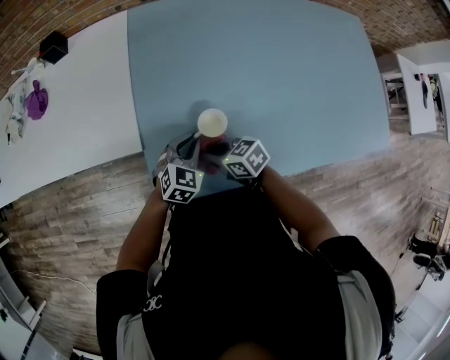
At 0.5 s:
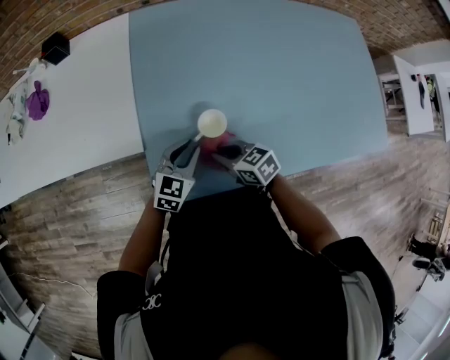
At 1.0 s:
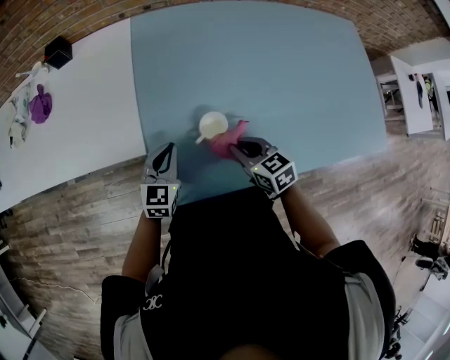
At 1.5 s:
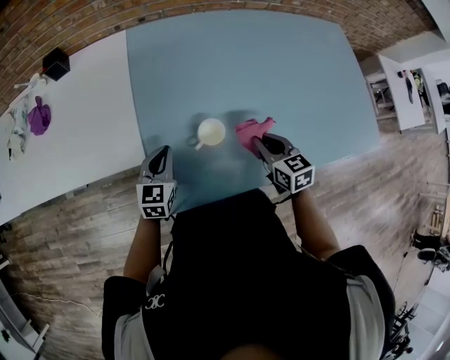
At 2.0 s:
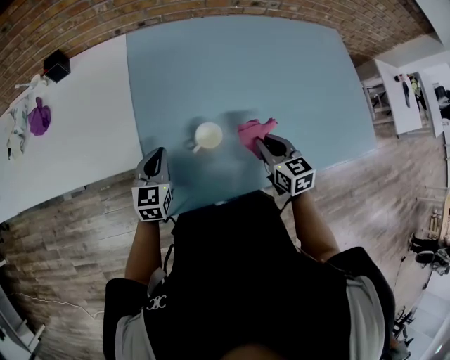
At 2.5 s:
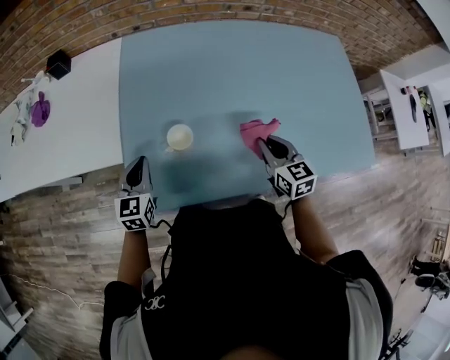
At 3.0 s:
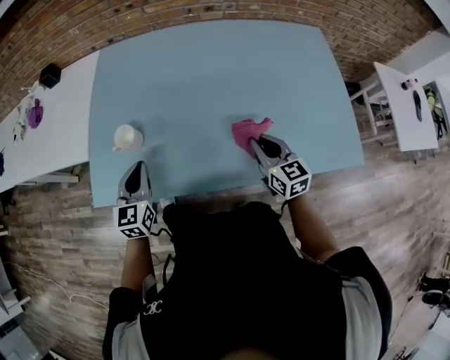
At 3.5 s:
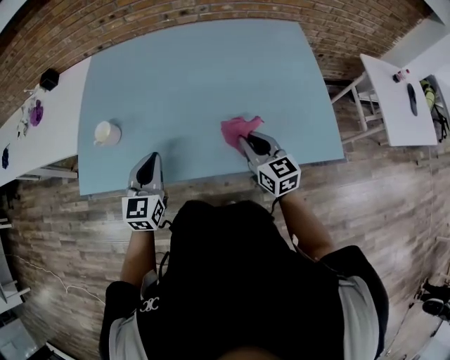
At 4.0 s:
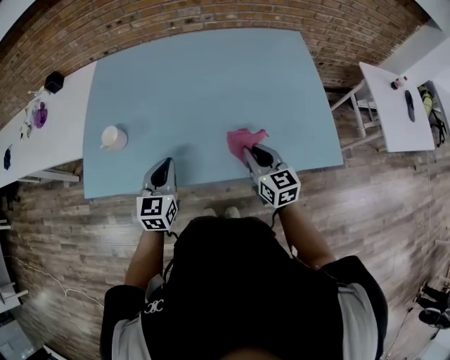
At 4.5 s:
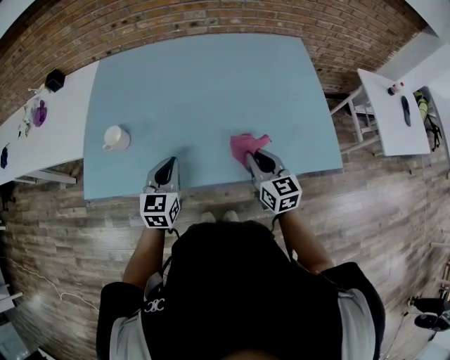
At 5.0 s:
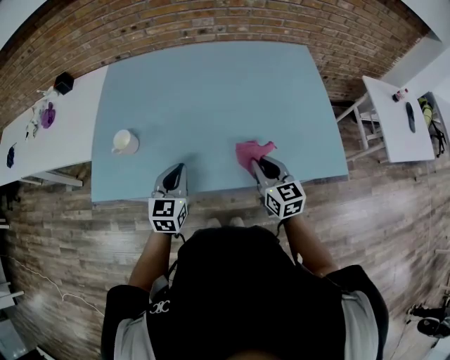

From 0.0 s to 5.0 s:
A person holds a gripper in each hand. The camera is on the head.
From 0.0 s to 2.5 s: The right gripper goes roughly 25 cm to the right, and turns by some 40 degrees. Meanwhile the left gripper heads upward and to the left, covering about 10 cm, and changes its angle by about 30 degrees.
From 2.5 s to 5.0 s: The right gripper goes some 25 cm to the right and backward, while the left gripper moves to the right, some 35 cm.

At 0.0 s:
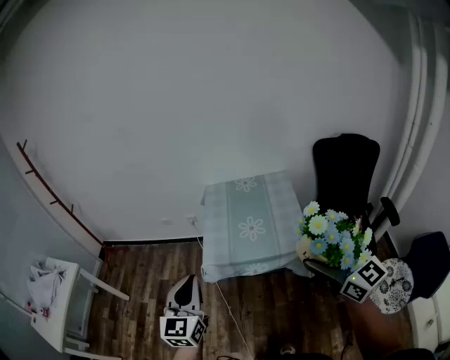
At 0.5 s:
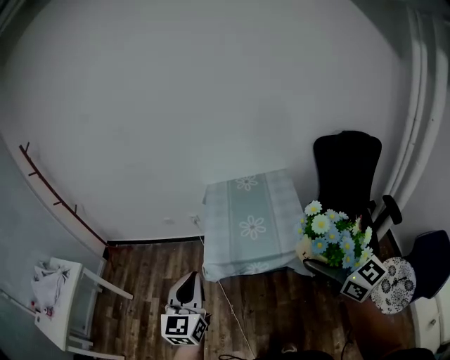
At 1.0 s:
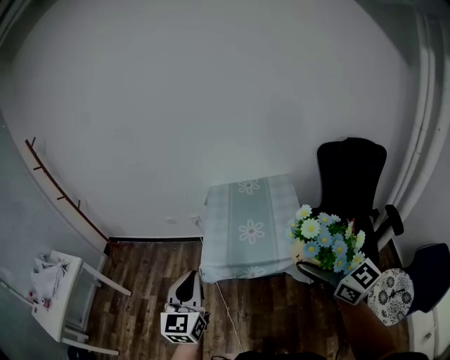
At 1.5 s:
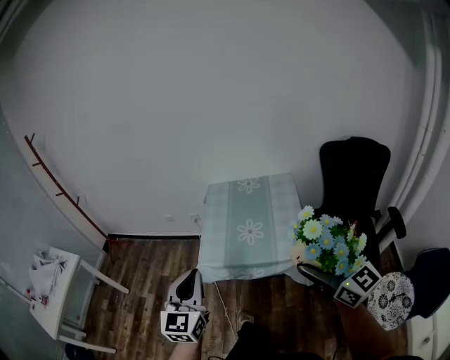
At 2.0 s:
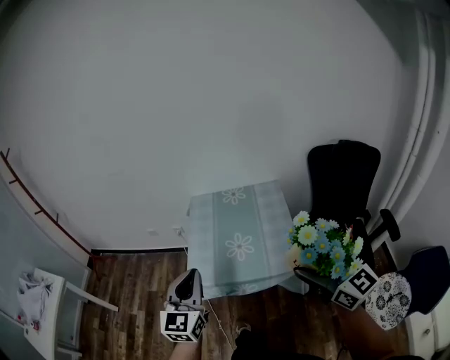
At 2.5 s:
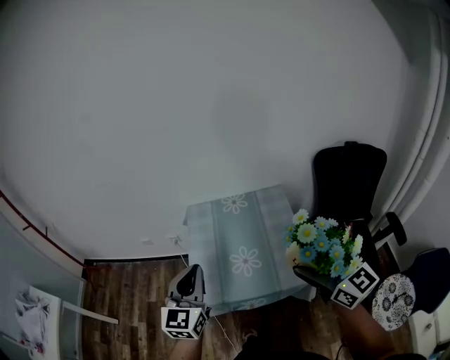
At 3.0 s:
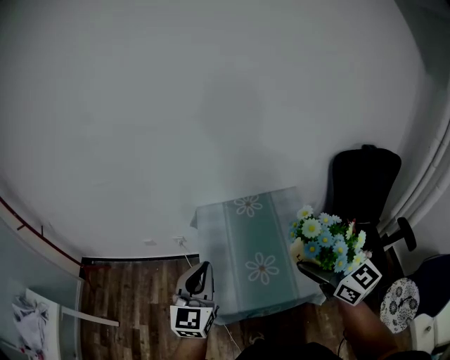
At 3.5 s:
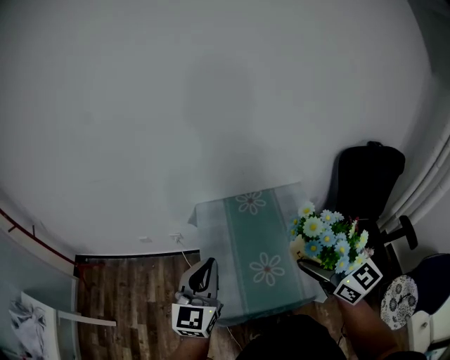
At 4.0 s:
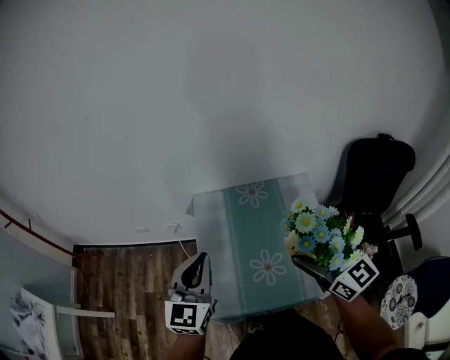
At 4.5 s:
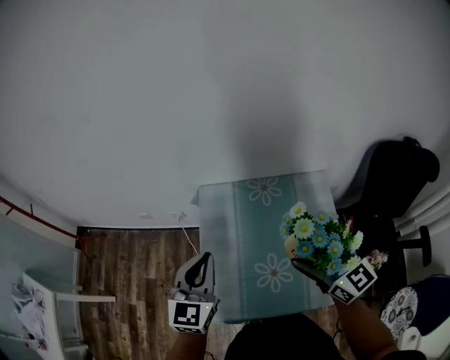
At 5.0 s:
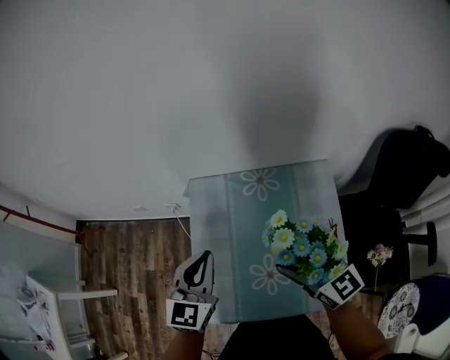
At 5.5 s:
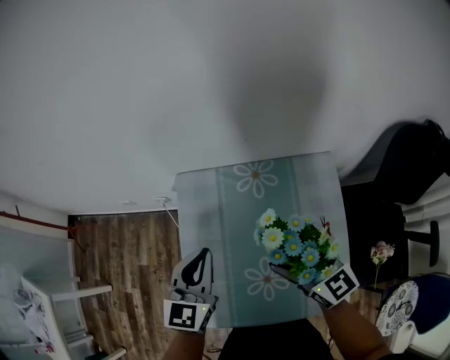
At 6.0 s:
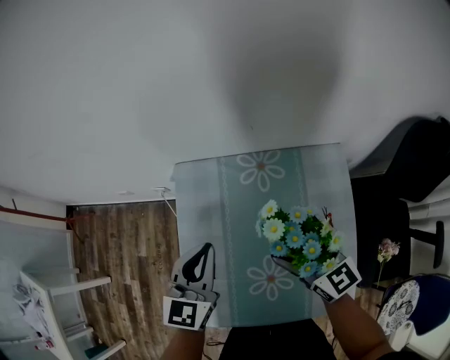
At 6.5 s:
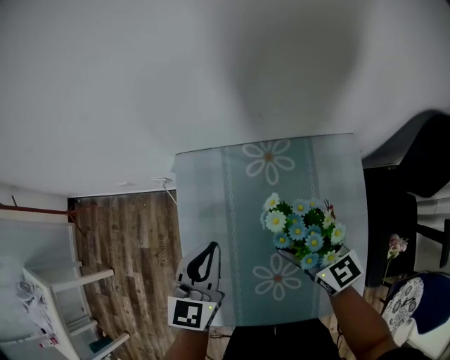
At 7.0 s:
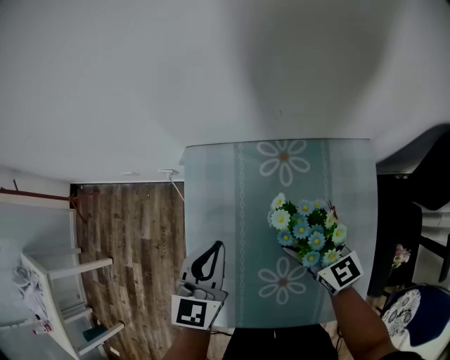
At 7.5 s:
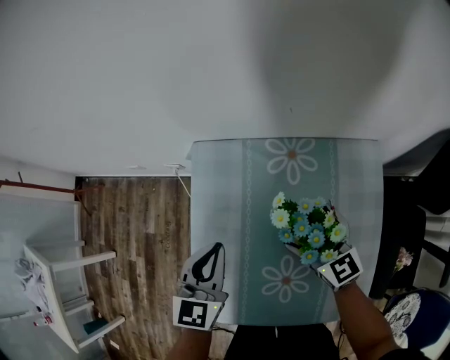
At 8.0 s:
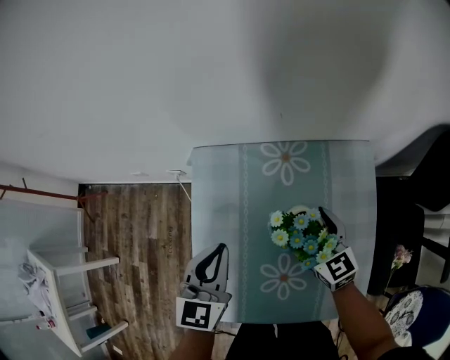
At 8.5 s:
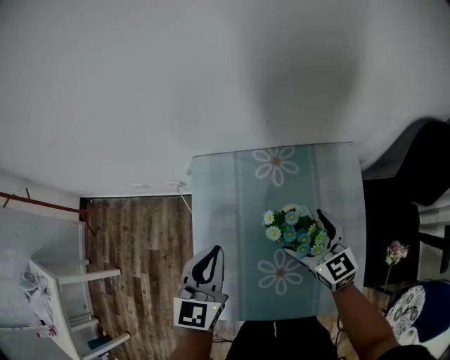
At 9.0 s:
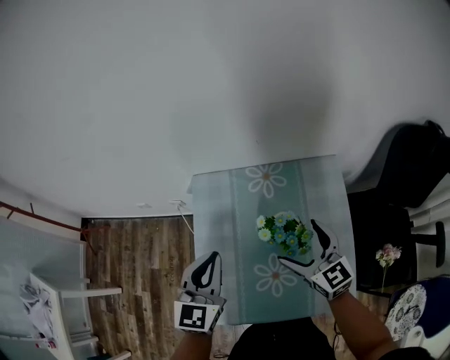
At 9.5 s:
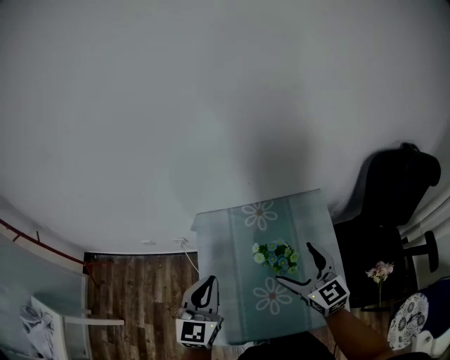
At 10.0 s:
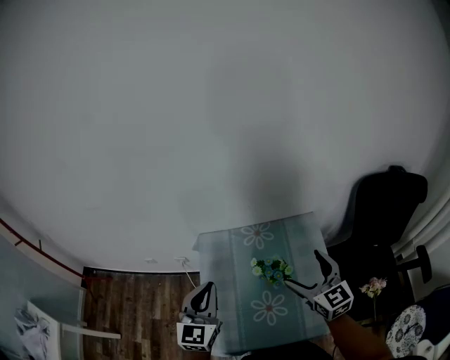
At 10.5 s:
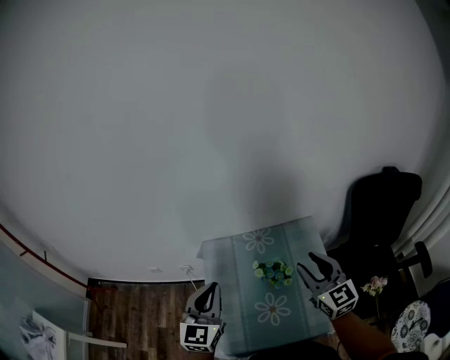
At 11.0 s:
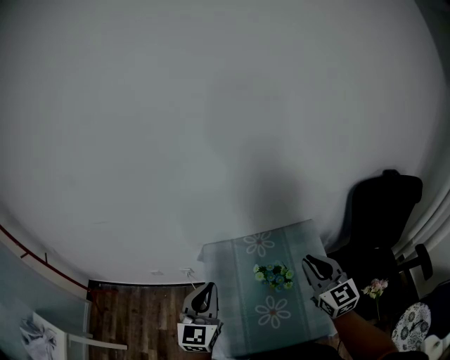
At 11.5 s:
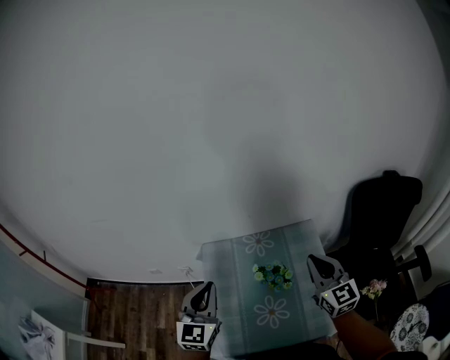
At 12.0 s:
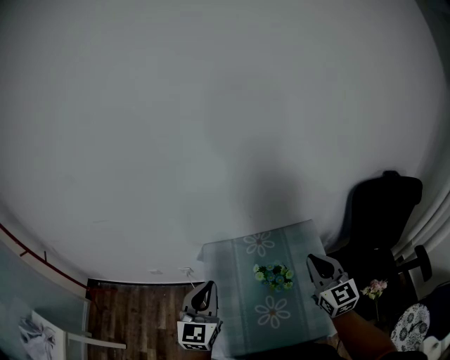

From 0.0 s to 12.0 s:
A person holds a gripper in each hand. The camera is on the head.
From 0.0 s to 2.0 s: Both grippers travel together forward and to the right, roughly 15 cm.
From 2.0 s to 4.0 s: The grippers both shift forward by some 30 cm.
From 4.0 s to 6.0 s: The right gripper travels downward and forward by approximately 25 cm, while the left gripper is displaced downward, forward and to the right by about 20 cm.
From 6.0 s to 8.0 s: The right gripper heads downward, covering some 10 cm.
From 8.0 s to 10.0 s: The grippers both shift upward by roughly 20 cm. The right gripper changes its angle by roughly 20 degrees.
From 10.0 s to 12.0 s: The right gripper shifts some 5 cm upward, and closes up.

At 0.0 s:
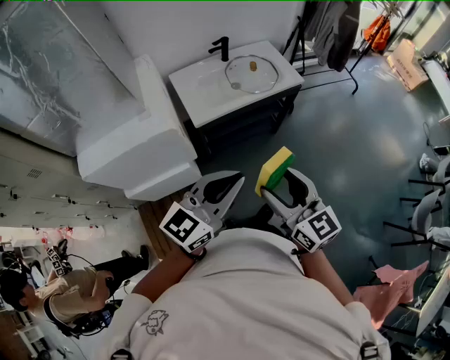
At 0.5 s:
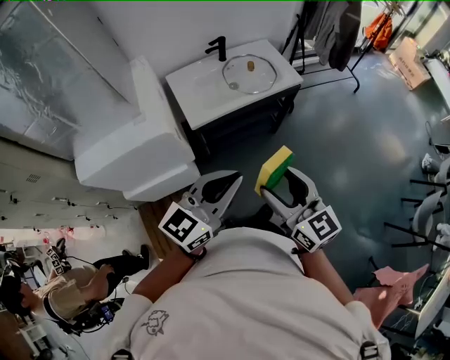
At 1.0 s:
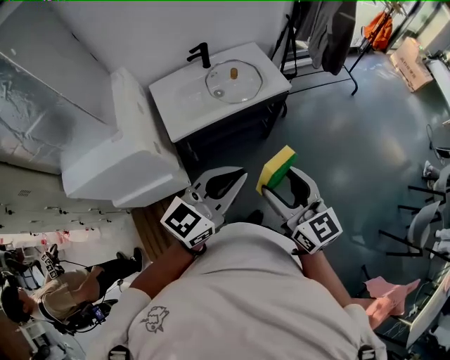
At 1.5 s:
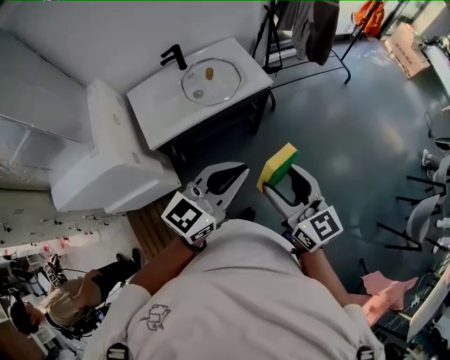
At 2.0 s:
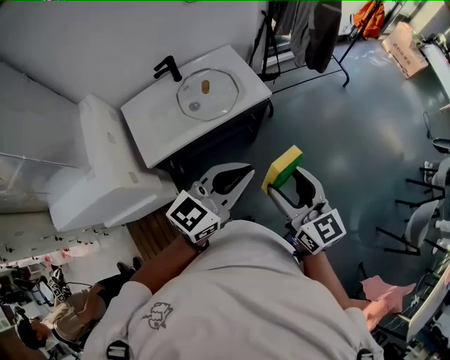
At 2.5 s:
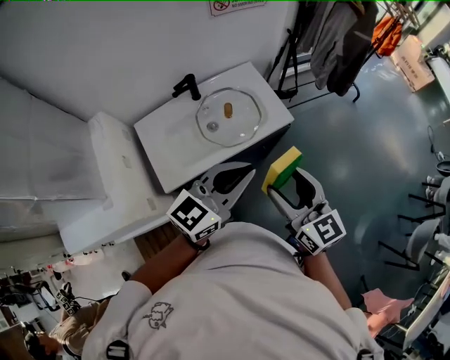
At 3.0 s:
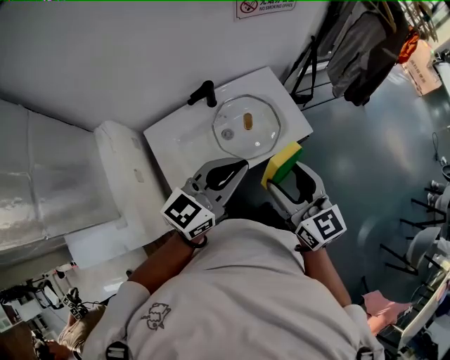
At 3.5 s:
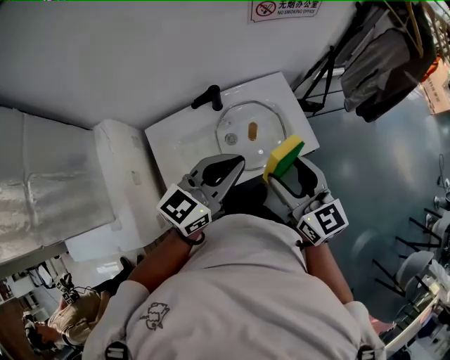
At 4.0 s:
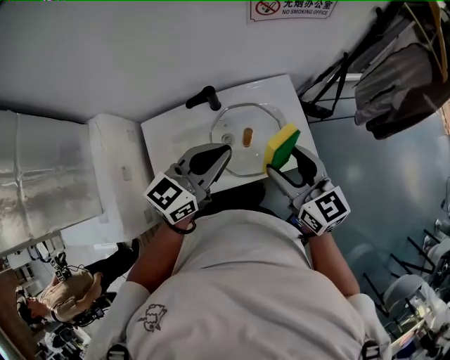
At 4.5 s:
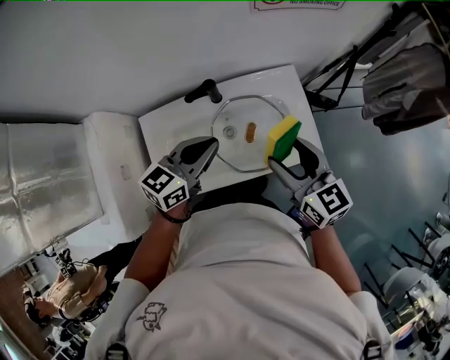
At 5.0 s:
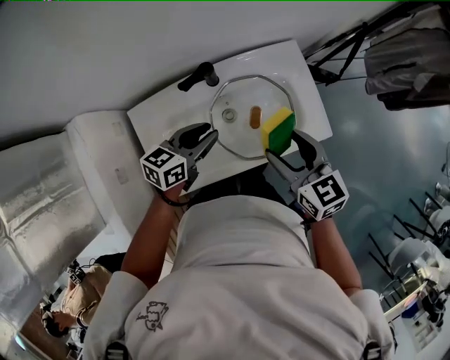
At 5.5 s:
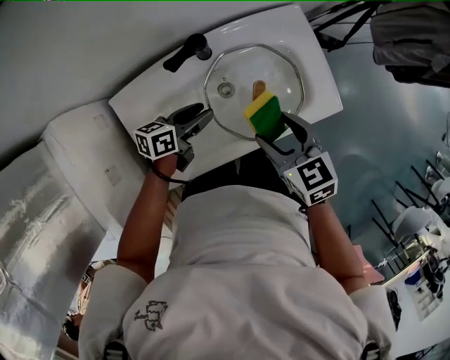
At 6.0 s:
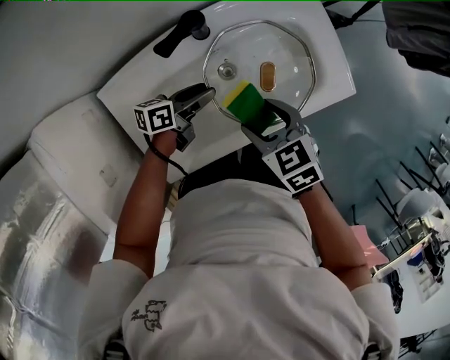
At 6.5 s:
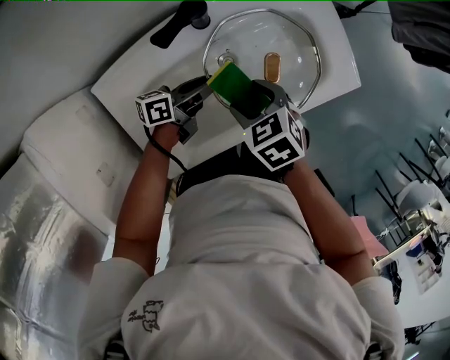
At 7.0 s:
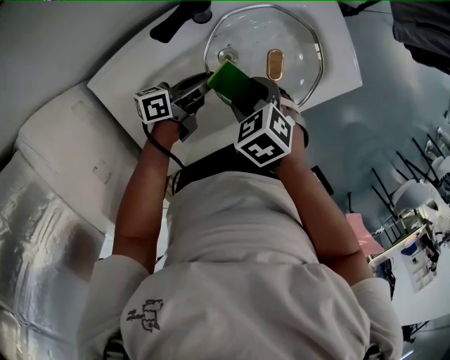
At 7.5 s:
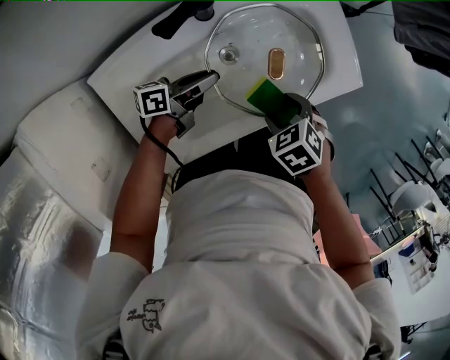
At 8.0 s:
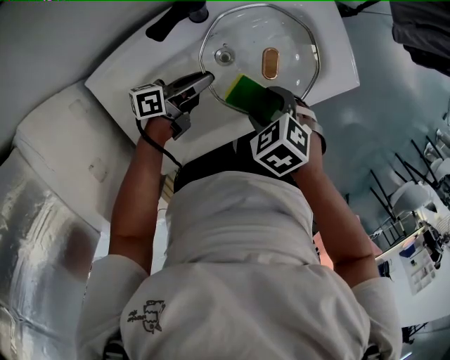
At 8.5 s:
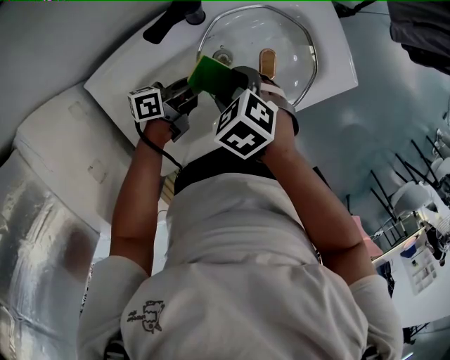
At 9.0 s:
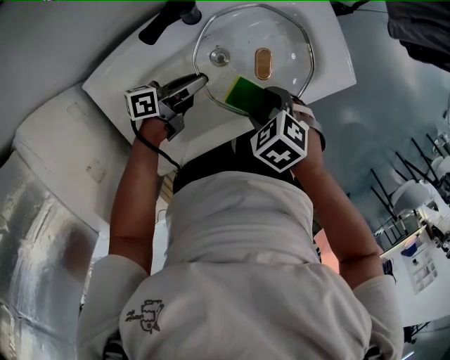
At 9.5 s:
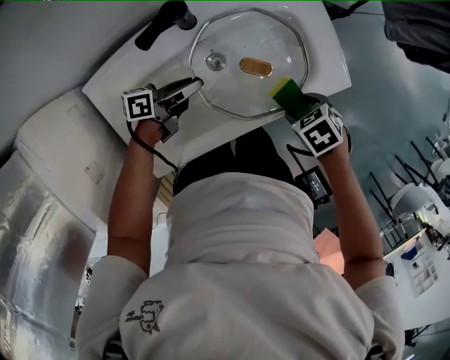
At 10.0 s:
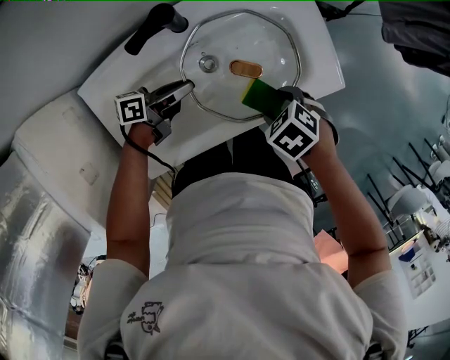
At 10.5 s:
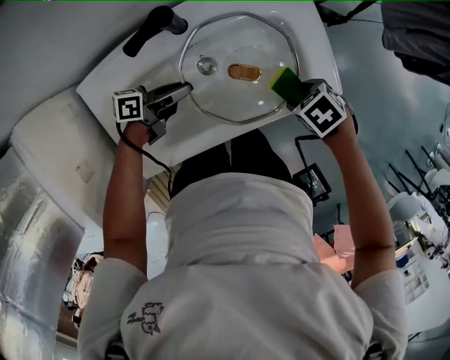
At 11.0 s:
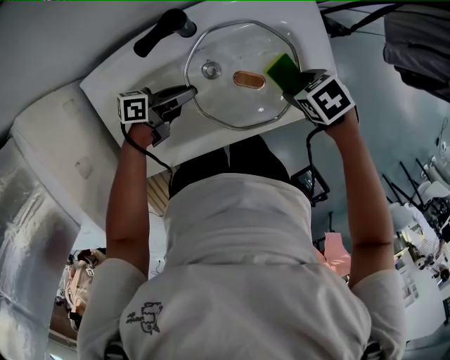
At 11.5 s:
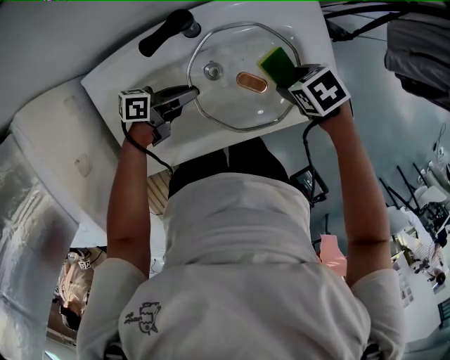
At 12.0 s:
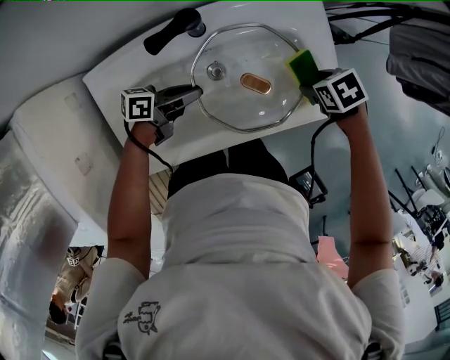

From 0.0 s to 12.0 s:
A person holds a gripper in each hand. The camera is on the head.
From 0.0 s to 2.0 s: The two grippers go approximately 35 cm forward and to the right.
From 2.0 s to 4.0 s: Both grippers are carried forward and to the left, approximately 50 cm.
From 4.0 s to 6.0 s: The right gripper shifts some 30 cm downward and to the left, and angles its fingers downward, by some 40 degrees, while the left gripper goes approximately 40 cm downward, twists about 50 degrees counterclockwise, seen from behind, and opens.
From 6.0 s to 8.0 s: The left gripper closes. The right gripper goes some 5 cm downward, and turns by approximately 30 degrees.
From 10.0 s to 12.0 s: The right gripper ends up approximately 15 cm from where it was.
